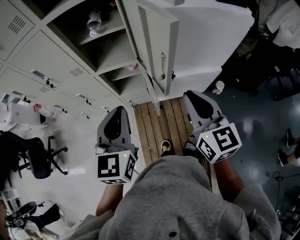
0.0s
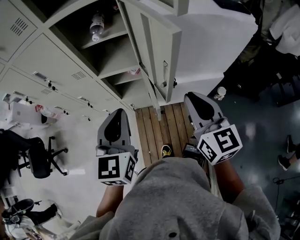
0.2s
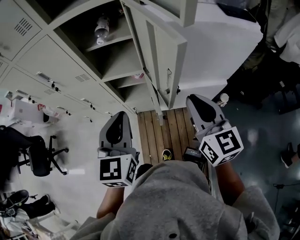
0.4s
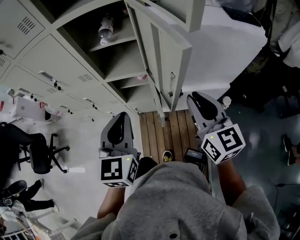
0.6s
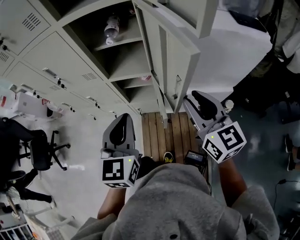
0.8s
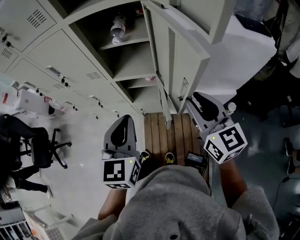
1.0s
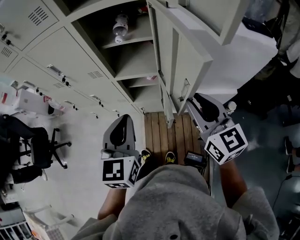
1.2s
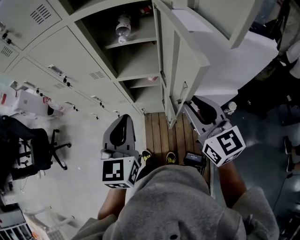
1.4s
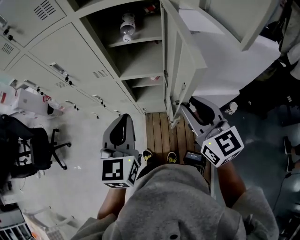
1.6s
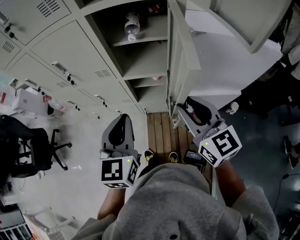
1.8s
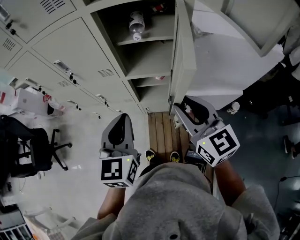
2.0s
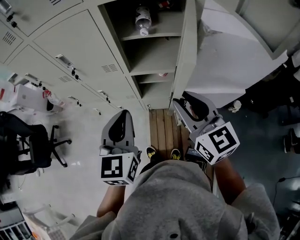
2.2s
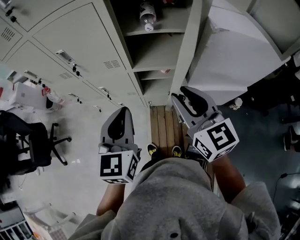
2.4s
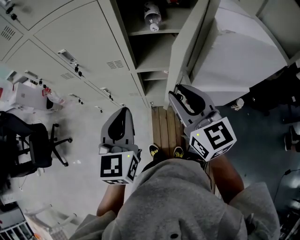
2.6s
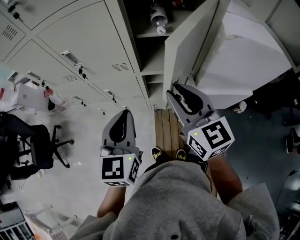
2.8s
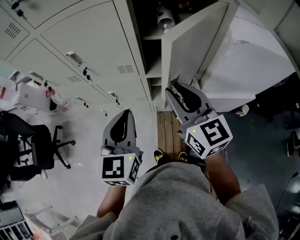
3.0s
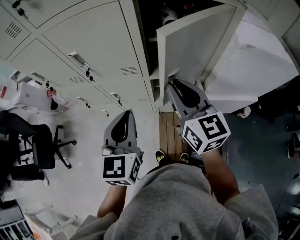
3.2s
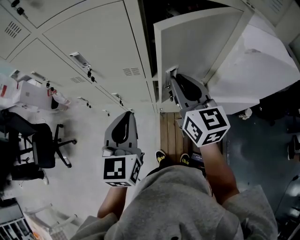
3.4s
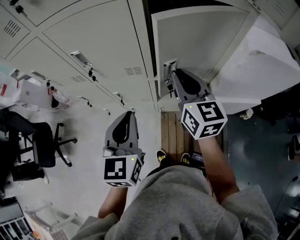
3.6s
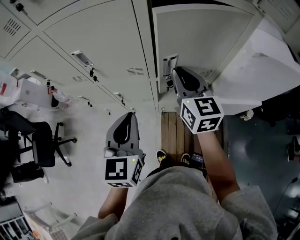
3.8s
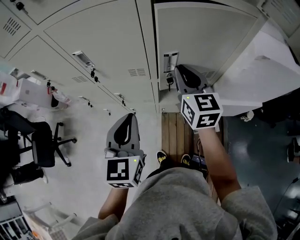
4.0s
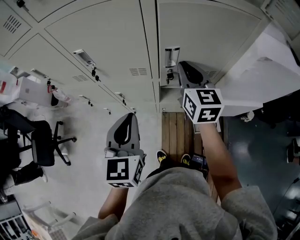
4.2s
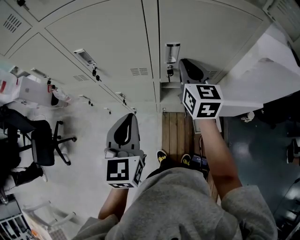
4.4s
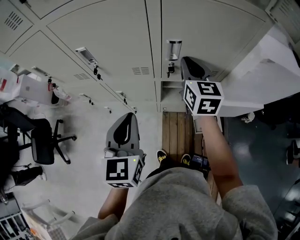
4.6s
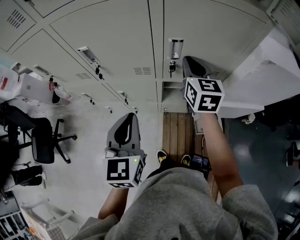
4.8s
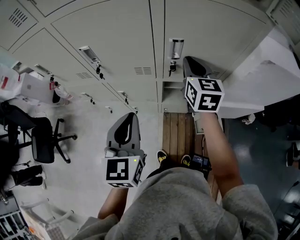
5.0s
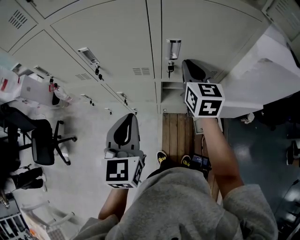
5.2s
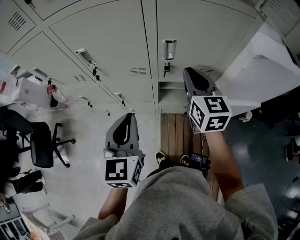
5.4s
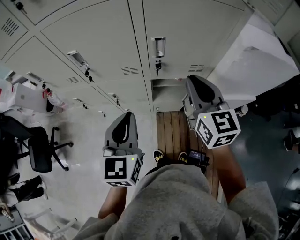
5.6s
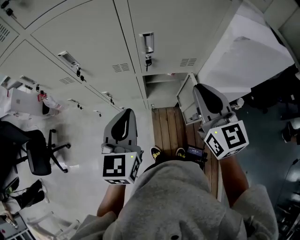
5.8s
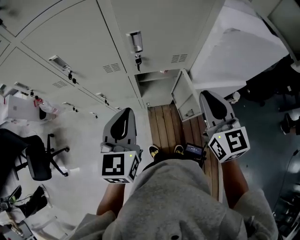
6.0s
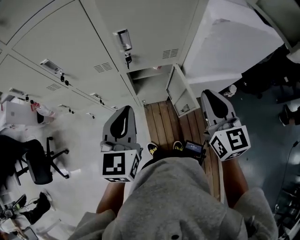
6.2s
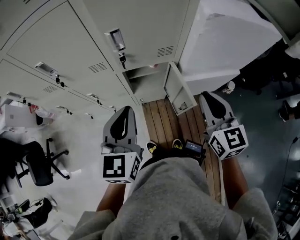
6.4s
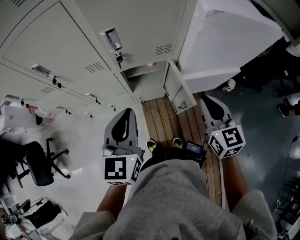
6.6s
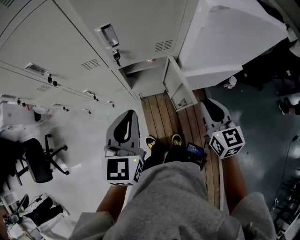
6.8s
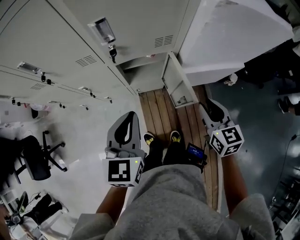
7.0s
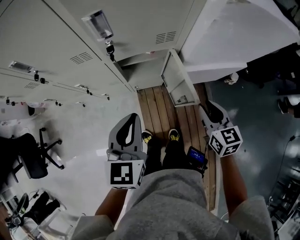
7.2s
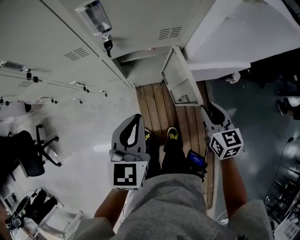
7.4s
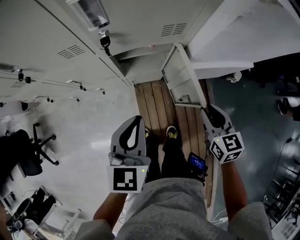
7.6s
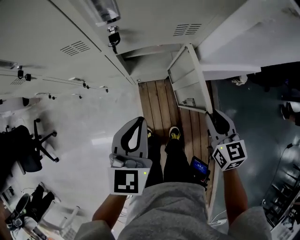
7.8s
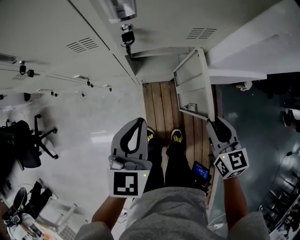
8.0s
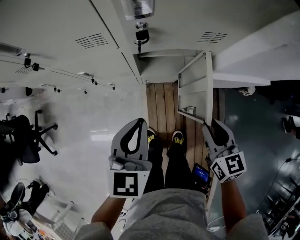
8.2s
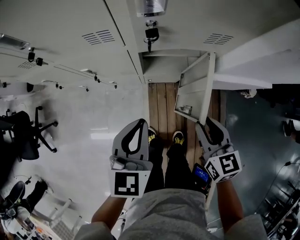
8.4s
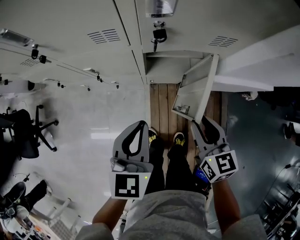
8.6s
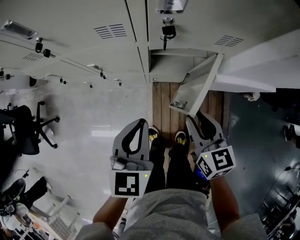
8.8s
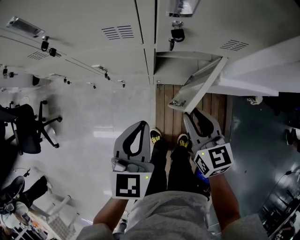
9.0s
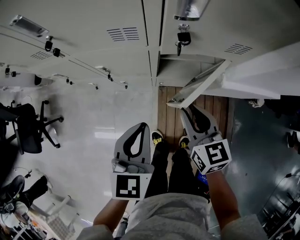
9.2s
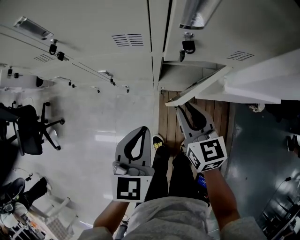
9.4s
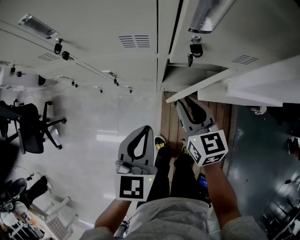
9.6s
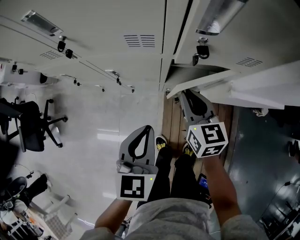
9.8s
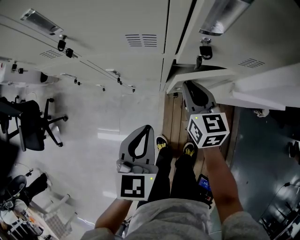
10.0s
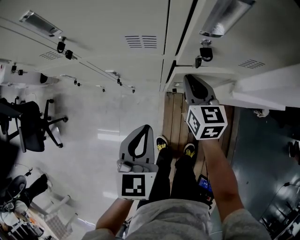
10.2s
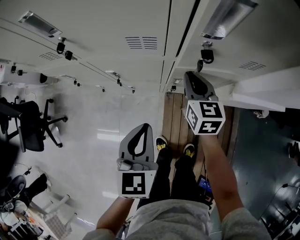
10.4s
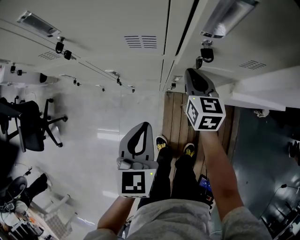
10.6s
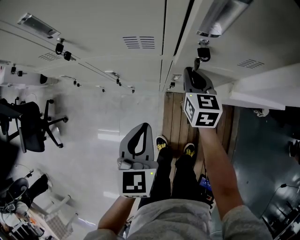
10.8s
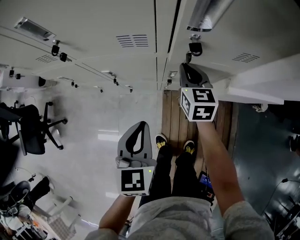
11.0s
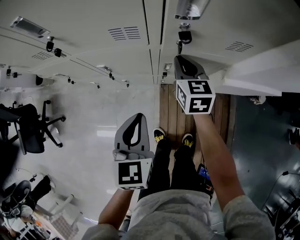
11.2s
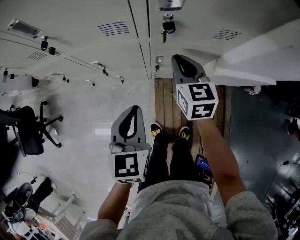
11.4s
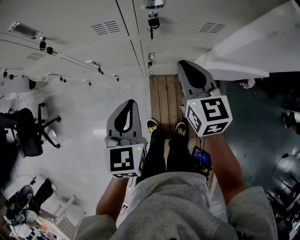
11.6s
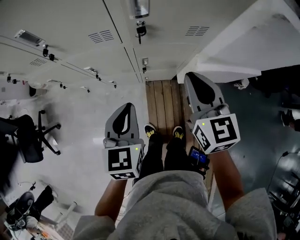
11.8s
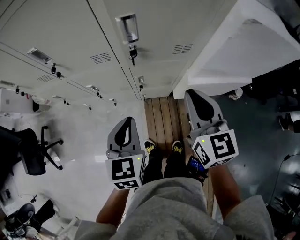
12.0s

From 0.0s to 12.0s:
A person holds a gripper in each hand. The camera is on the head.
From 0.0s to 1.6s: The right gripper shifts some 10 cm to the left and forward, while the left gripper heads to the left, covering some 5 cm.
From 1.6s to 3.0s: The grippers both shift to the left and forward by some 15 cm.
From 3.0s to 4.4s: The left gripper shifts by roughly 5 cm, while the right gripper shifts about 15 cm forward.
From 4.4s to 6.0s: The right gripper travels backward and to the right by some 25 cm, while the left gripper shifts some 5 cm to the right.
From 6.0s to 7.6s: The right gripper travels downward by about 25 cm, and rotates approximately 30 degrees. The left gripper goes about 15 cm downward and to the right.
From 7.6s to 9.0s: The left gripper goes roughly 10 cm to the left. Meanwhile the right gripper is displaced to the left by roughly 20 cm.
From 9.0s to 10.4s: The left gripper changes place by some 5 cm. The right gripper goes some 15 cm forward.
From 10.4s to 12.0s: The left gripper shifts approximately 10 cm upward and to the right, while the right gripper goes about 30 cm upward, backward and to the right.

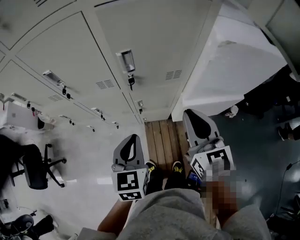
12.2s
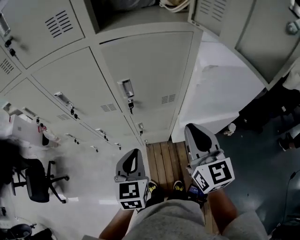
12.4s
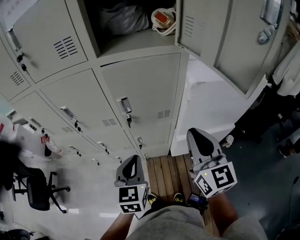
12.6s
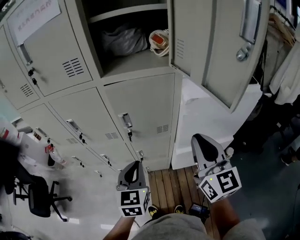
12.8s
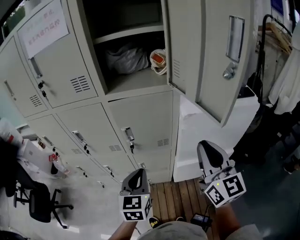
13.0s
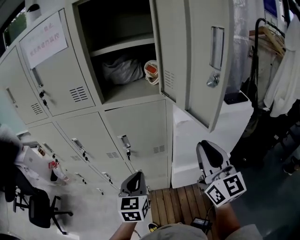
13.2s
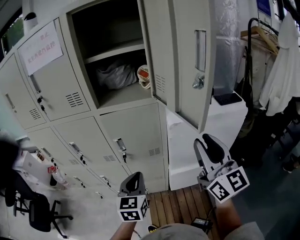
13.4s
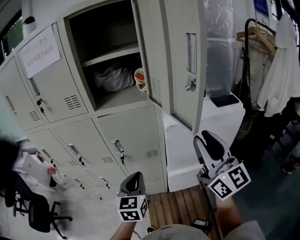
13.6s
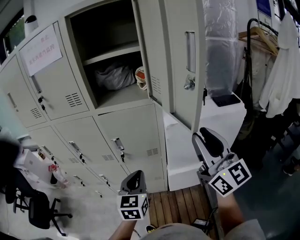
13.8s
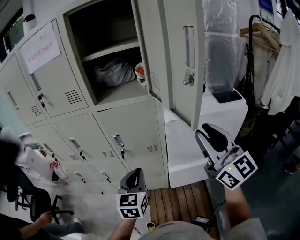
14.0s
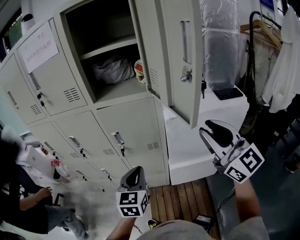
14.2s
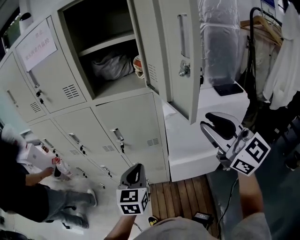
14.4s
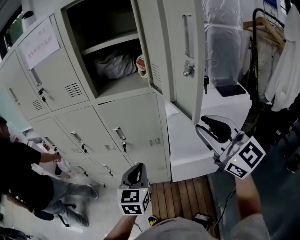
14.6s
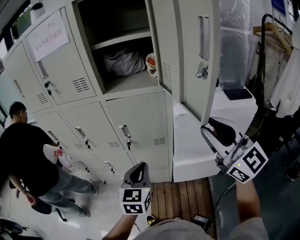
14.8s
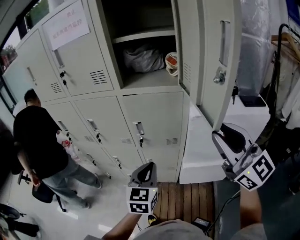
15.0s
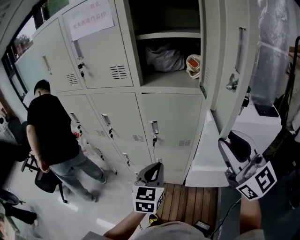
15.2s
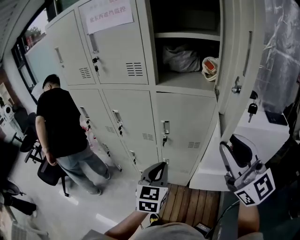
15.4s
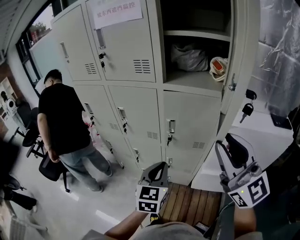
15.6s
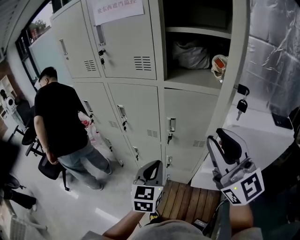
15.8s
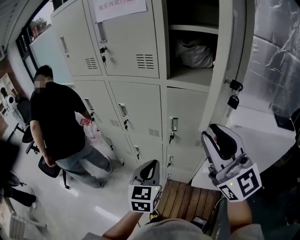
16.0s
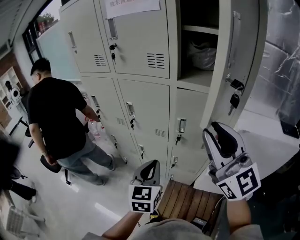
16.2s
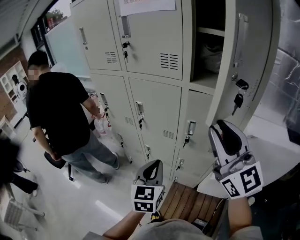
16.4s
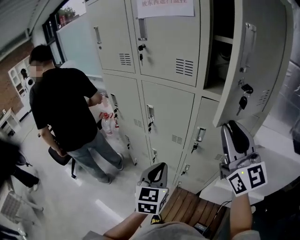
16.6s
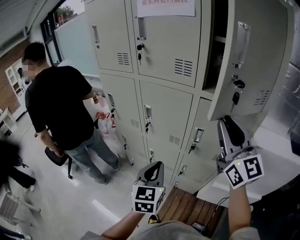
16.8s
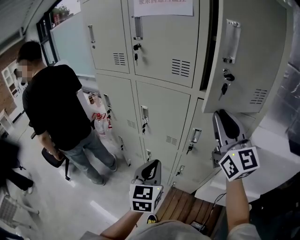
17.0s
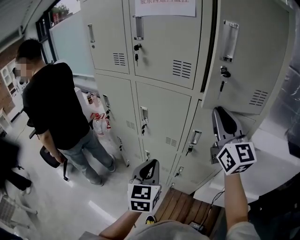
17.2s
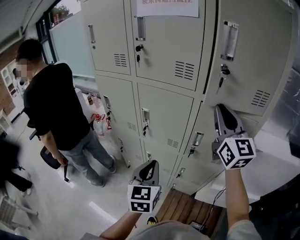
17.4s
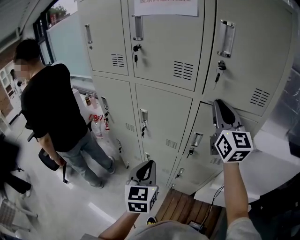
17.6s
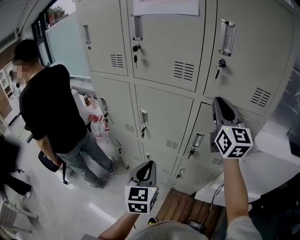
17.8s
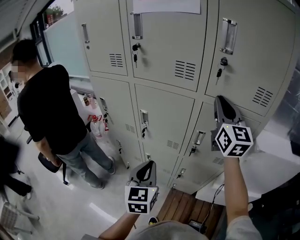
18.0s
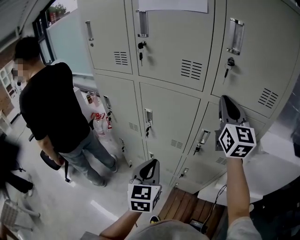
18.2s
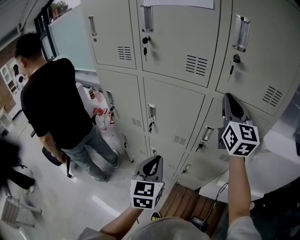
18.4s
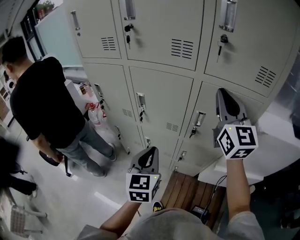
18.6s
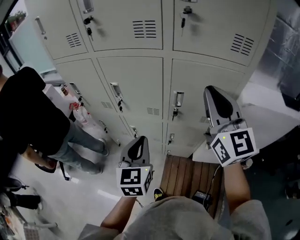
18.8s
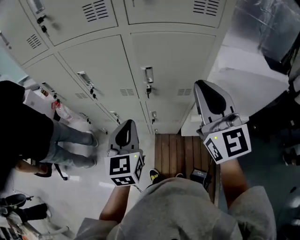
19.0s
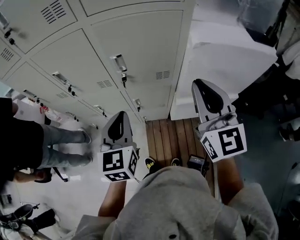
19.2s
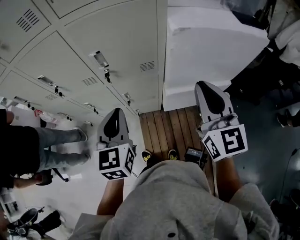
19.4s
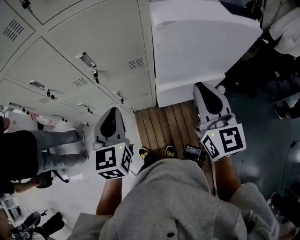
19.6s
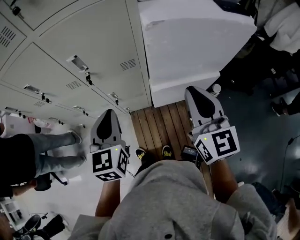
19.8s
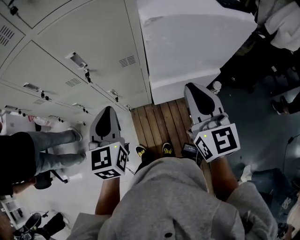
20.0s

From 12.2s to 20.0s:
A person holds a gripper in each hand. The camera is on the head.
From 12.2s to 13.8s: The left gripper goes roughly 20 cm upward and to the right; the right gripper heads upward and to the right, covering approximately 30 cm, and tilts its fingers approximately 30 degrees upward.
From 13.8s to 15.4s: Both grippers move to the left, approximately 10 cm. The right gripper turns by some 20 degrees.
From 15.4s to 16.8s: The right gripper travels forward and to the left by approximately 20 cm. The left gripper is displaced to the left and forward by approximately 15 cm.
From 16.8s to 18.4s: The right gripper shifts some 15 cm forward; the left gripper moves some 5 cm.
From 18.4s to 20.0s: The left gripper travels to the right by approximately 25 cm, and turns by roughly 20 degrees; the right gripper moves to the right, backward and downward, approximately 40 cm, and swivels approximately 30 degrees.

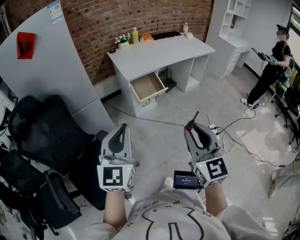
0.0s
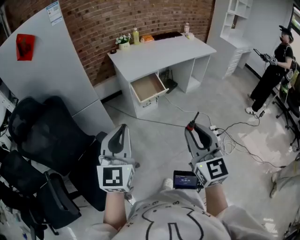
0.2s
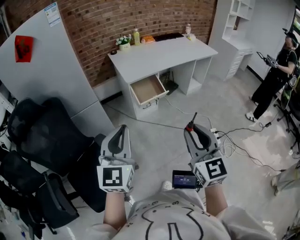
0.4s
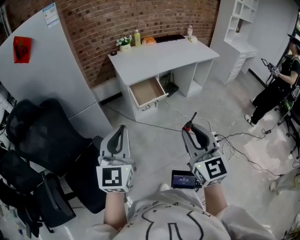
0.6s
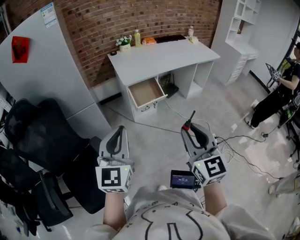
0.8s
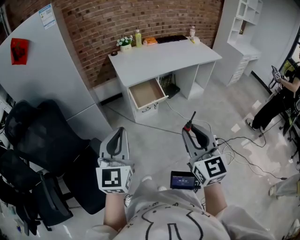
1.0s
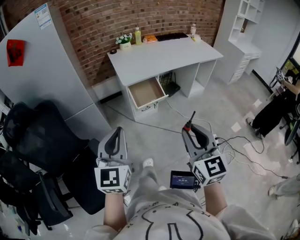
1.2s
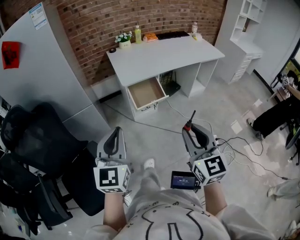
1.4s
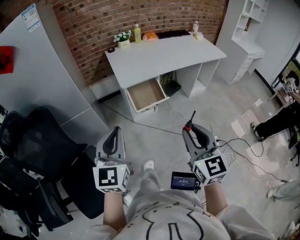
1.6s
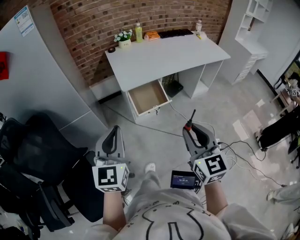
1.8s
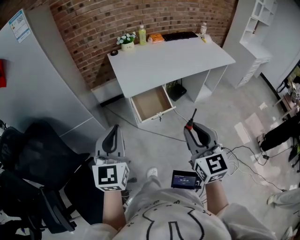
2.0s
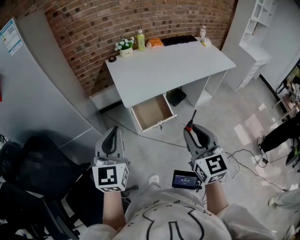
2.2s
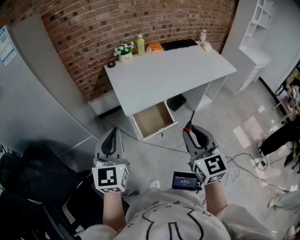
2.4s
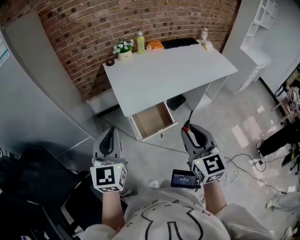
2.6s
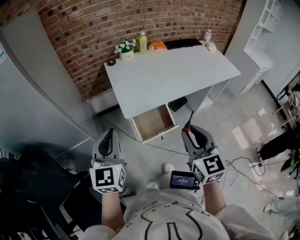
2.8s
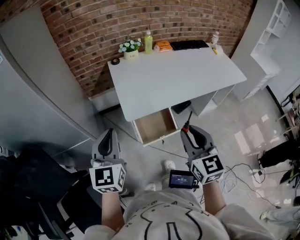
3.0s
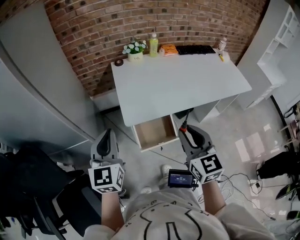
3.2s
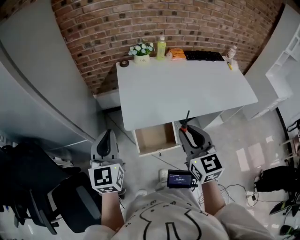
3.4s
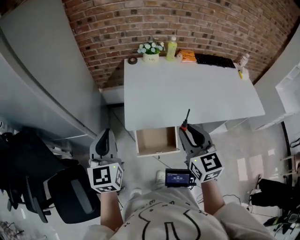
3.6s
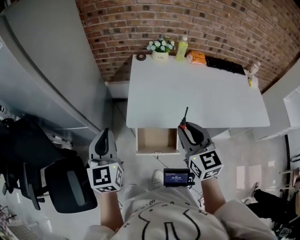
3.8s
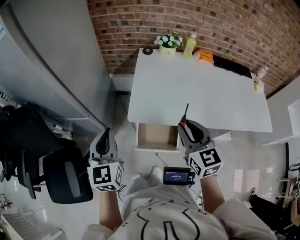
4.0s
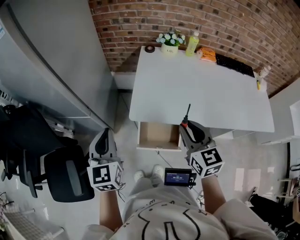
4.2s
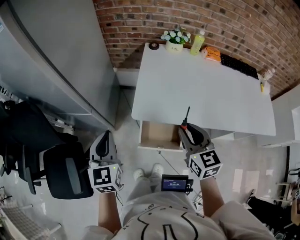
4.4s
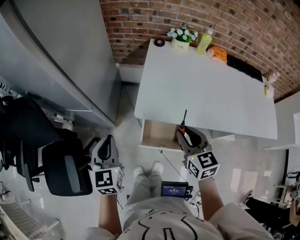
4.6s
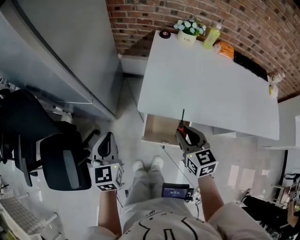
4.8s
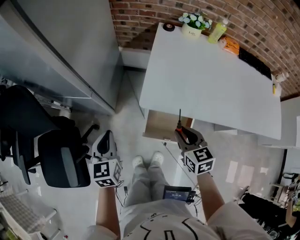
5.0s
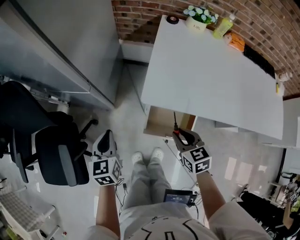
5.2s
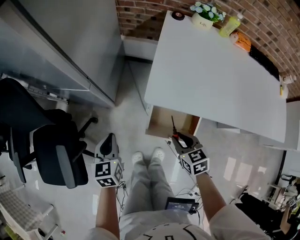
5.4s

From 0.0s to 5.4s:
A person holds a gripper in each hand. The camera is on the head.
From 0.0s to 1.4s: Both grippers move forward and to the right, approximately 15 cm.
From 1.4s to 2.8s: The grippers both shift forward by approximately 30 cm.
From 2.8s to 4.0s: The left gripper ends up approximately 10 cm from where it was, and rotates approximately 30 degrees; the right gripper moves some 20 cm, and turns by about 30 degrees.
From 4.0s to 5.4s: Both grippers move downward, approximately 25 cm. The left gripper rotates some 30 degrees; the right gripper angles its fingers downward, by about 30 degrees.
